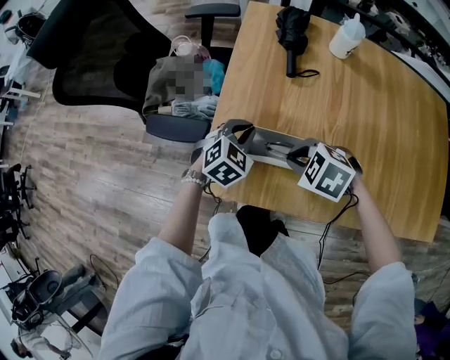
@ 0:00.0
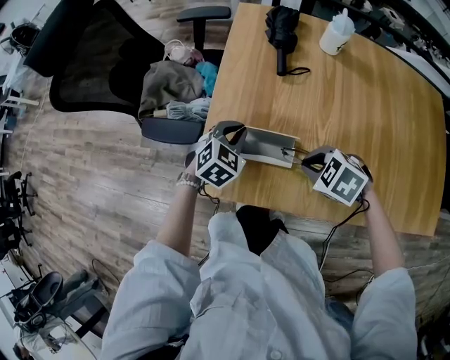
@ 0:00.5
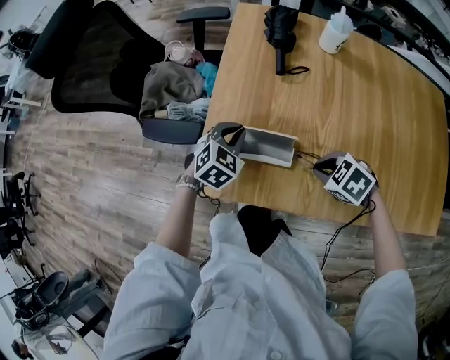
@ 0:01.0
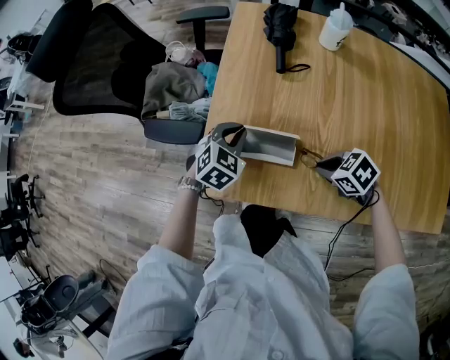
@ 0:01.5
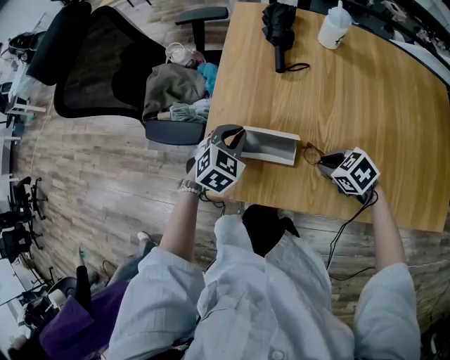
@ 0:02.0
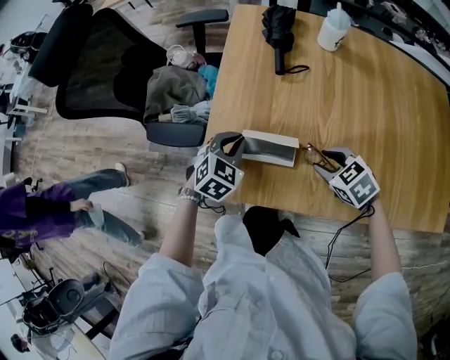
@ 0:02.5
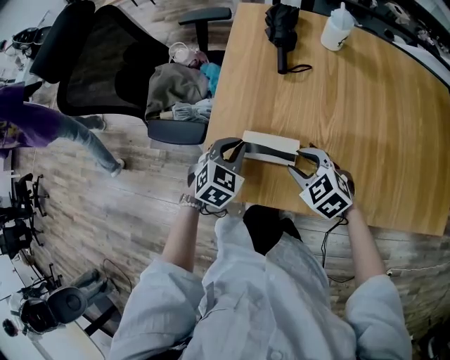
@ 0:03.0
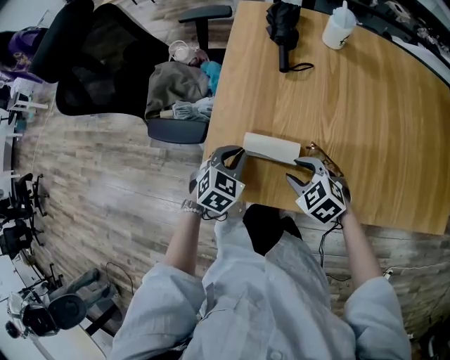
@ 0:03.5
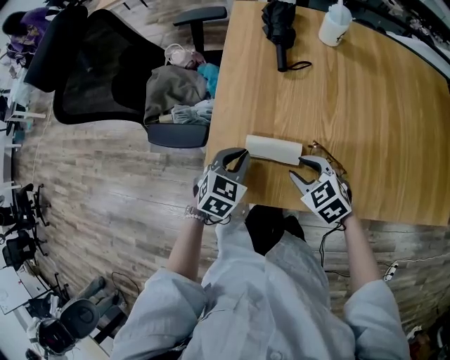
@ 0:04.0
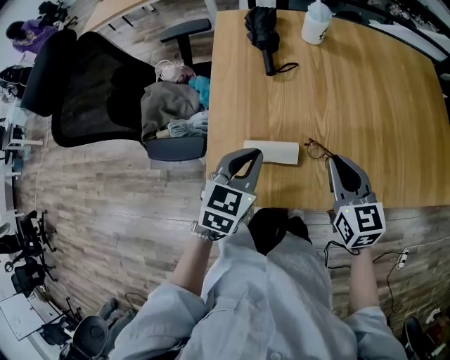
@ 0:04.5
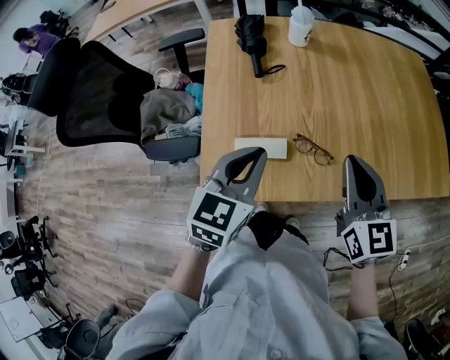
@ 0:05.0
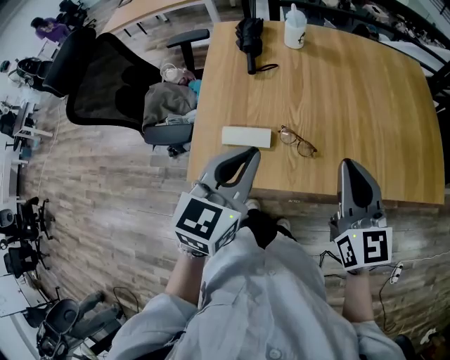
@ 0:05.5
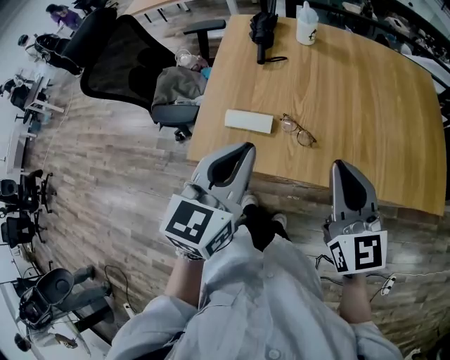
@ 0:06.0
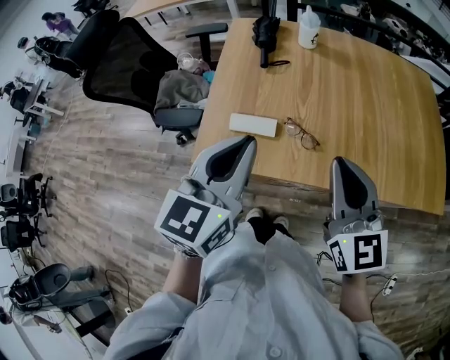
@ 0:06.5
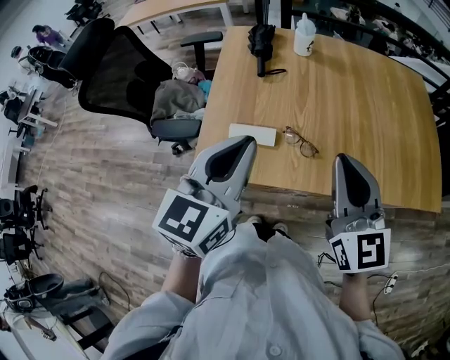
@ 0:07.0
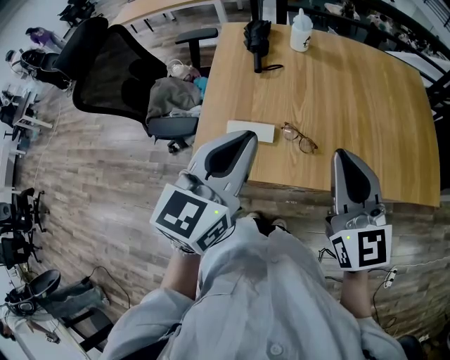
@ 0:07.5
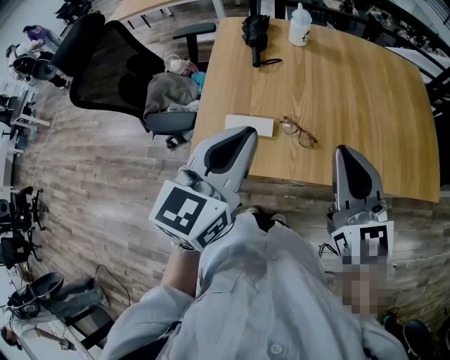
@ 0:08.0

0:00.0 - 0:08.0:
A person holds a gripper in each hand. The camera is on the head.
0:00.0 - 0:02.0: The right gripper shifts approximately 15 cm to the right, backward and downward, and swivels some 30 degrees.
0:02.0 - 0:04.0: The left gripper shifts roughly 5 cm backward. Meanwhile the right gripper shifts about 10 cm to the left, rotates some 20 degrees, and opens up.
0:04.0 - 0:06.0: The grippers both shift upward, to the right and backward by roughly 35 cm. The left gripper turns by about 30 degrees, while the right gripper points its fingers about 40 degrees further upward, and closes its fingers.
0:06.0 - 0:08.0: The right gripper moves roughly 5 cm, while the left gripper changes place by about 5 cm.

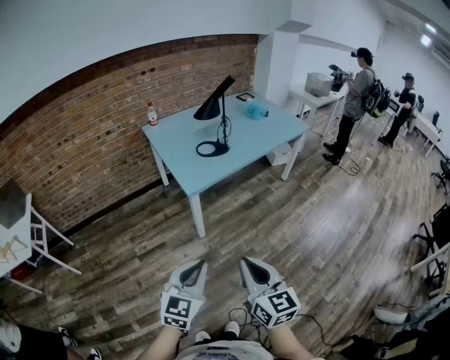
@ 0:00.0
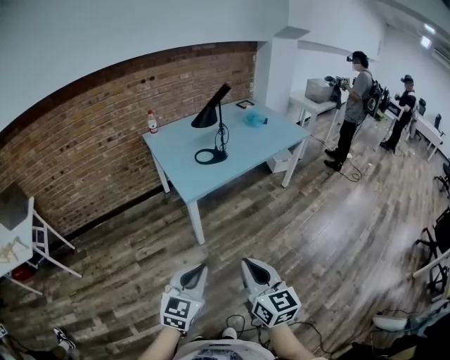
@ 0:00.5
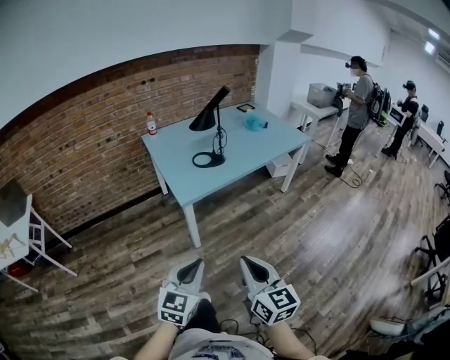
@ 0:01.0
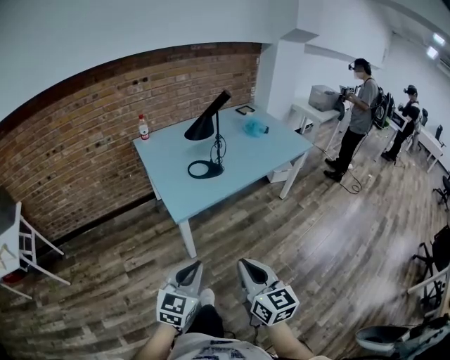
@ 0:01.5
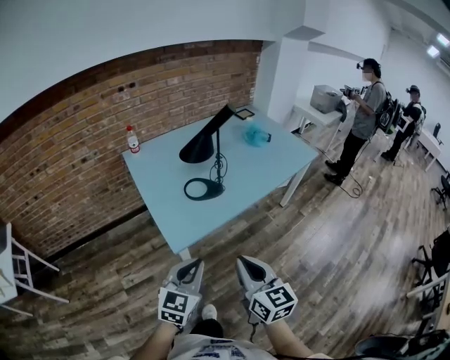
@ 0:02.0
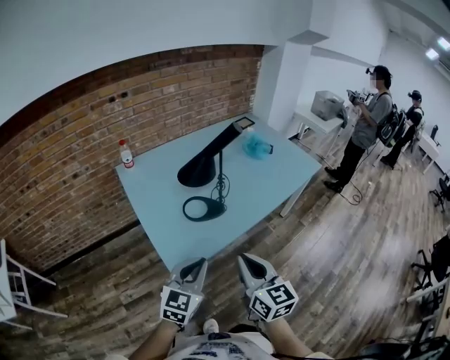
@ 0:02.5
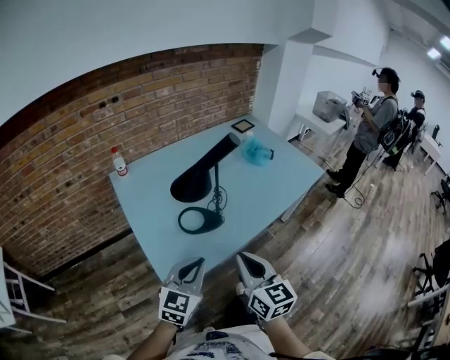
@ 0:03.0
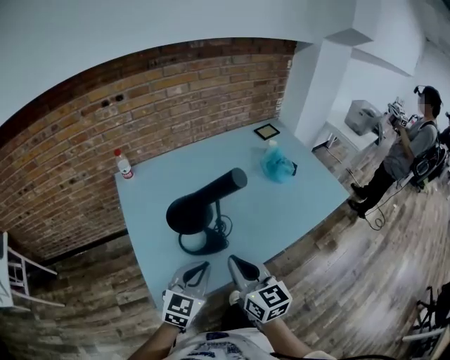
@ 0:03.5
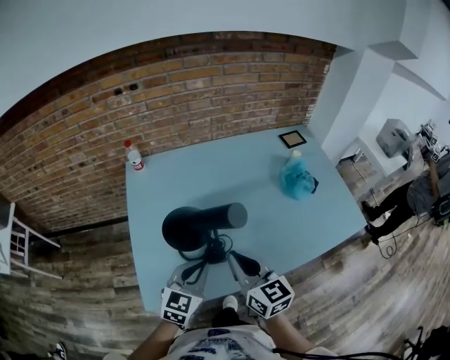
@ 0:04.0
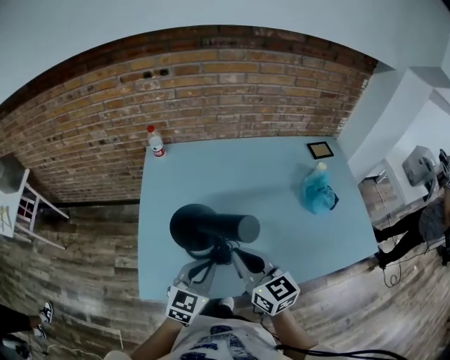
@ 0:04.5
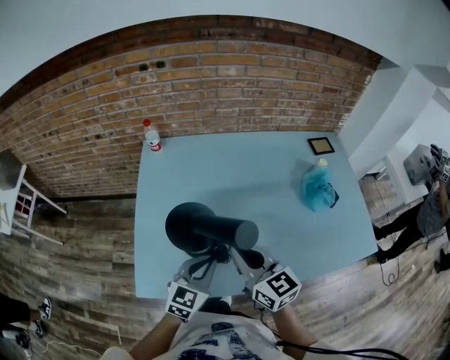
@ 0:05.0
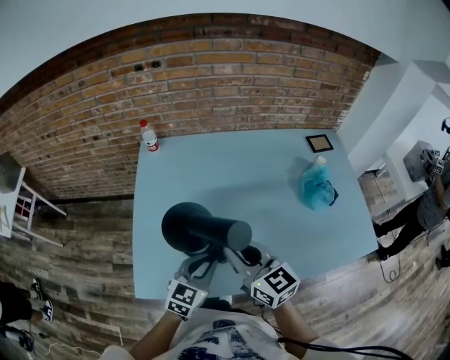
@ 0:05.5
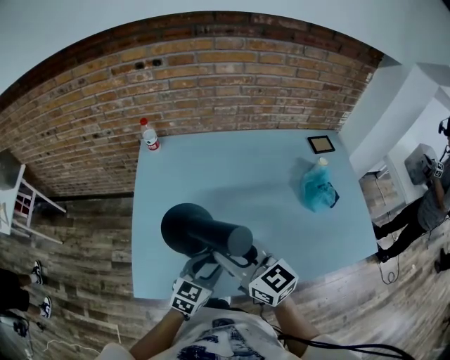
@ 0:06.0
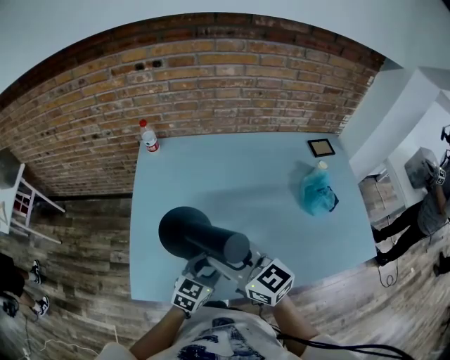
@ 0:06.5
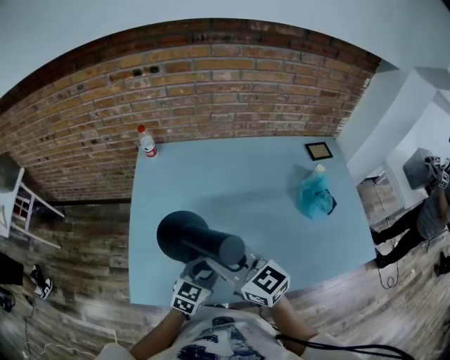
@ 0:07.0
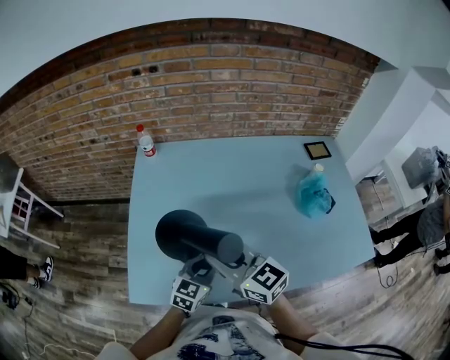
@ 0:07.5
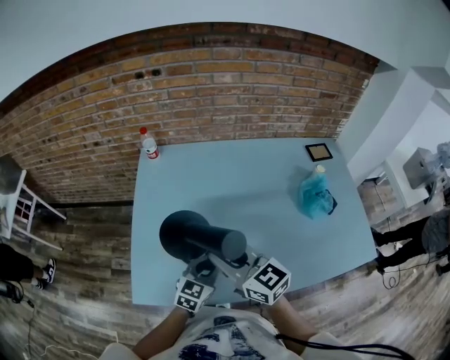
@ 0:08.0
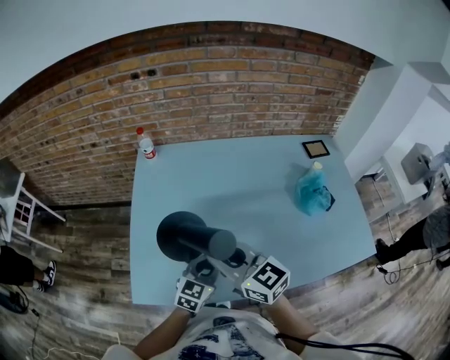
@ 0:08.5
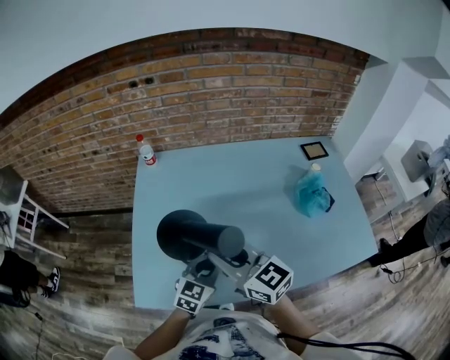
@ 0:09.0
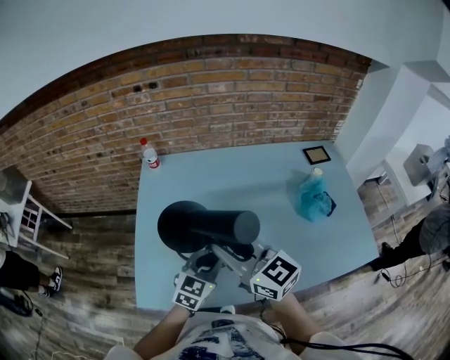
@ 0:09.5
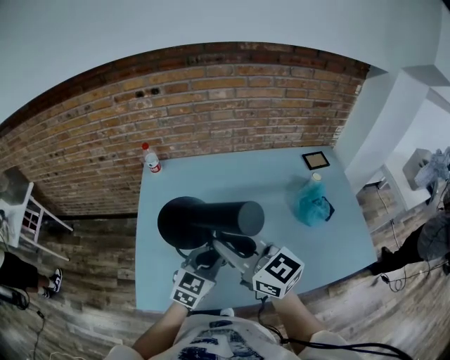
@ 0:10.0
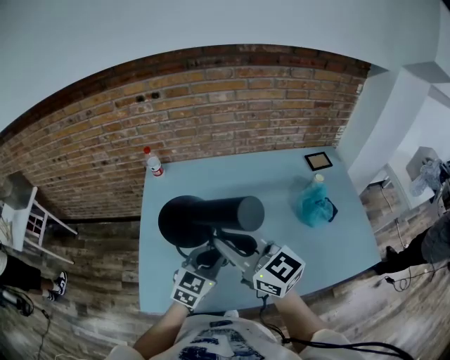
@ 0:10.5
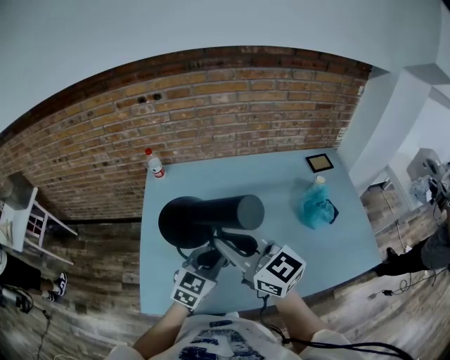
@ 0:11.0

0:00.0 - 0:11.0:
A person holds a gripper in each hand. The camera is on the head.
0:00.0 - 0:02.0: The two grippers go approximately 35 cm forward.
0:02.0 - 0:03.5: Both grippers move forward, roughly 35 cm.
0:03.5 - 0:05.5: The left gripper shifts some 15 cm forward, downward and to the right, while the right gripper goes approximately 15 cm forward, and swivels approximately 30 degrees.
0:05.5 - 0:07.5: The left gripper ends up approximately 5 cm from where it was; the right gripper opens, then closes once more.
0:07.5 - 0:09.0: The grippers move only a little.
0:09.0 - 0:11.0: Both grippers travel together upward, some 10 cm.

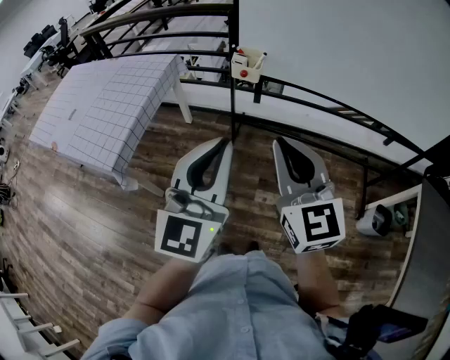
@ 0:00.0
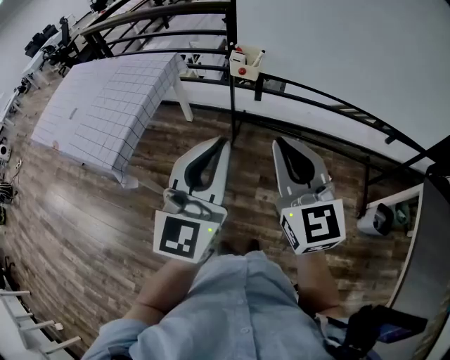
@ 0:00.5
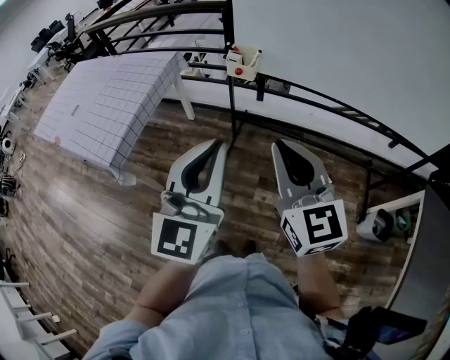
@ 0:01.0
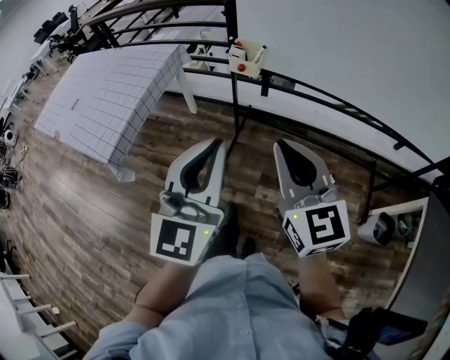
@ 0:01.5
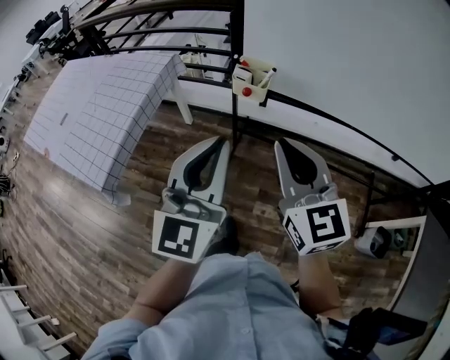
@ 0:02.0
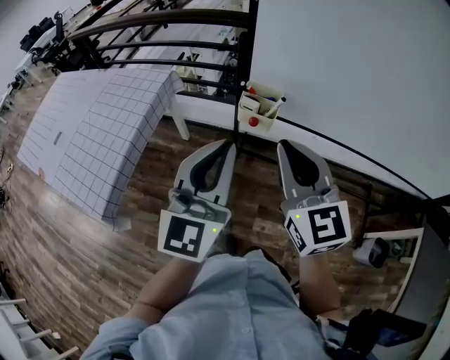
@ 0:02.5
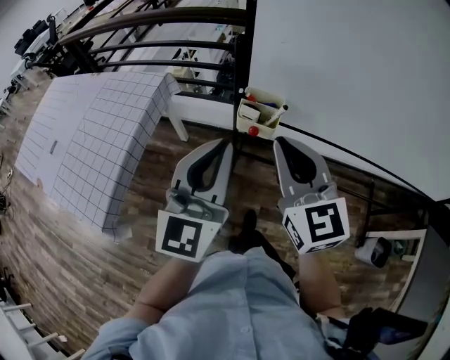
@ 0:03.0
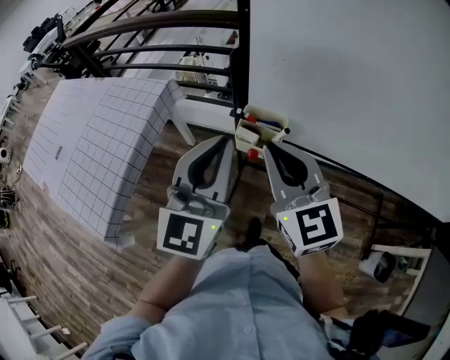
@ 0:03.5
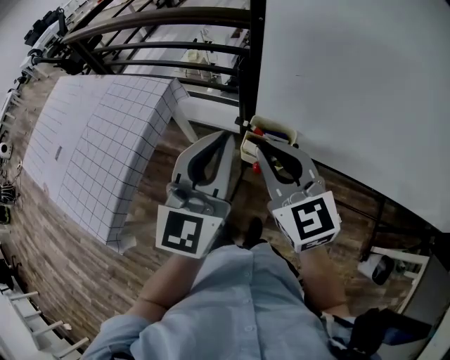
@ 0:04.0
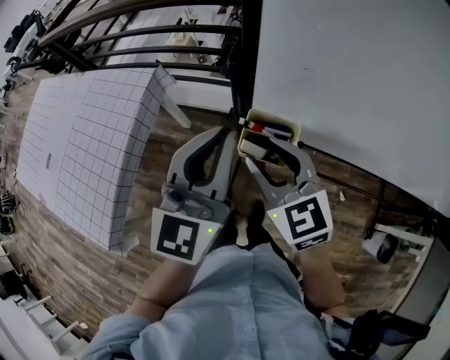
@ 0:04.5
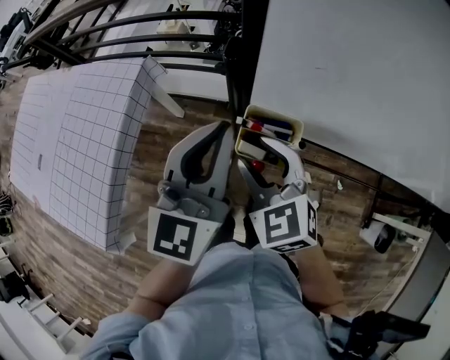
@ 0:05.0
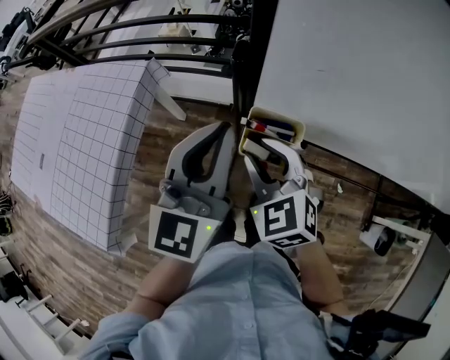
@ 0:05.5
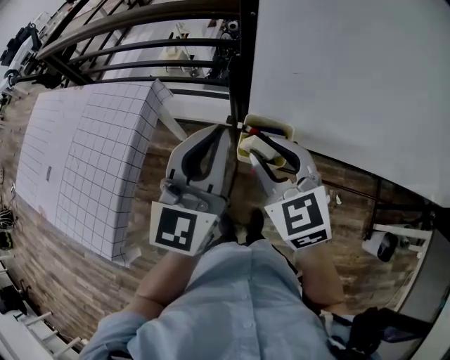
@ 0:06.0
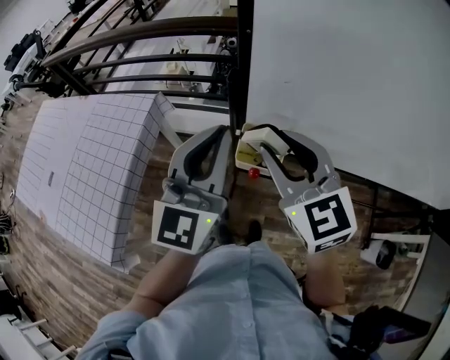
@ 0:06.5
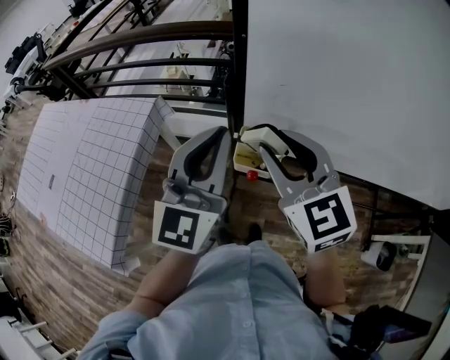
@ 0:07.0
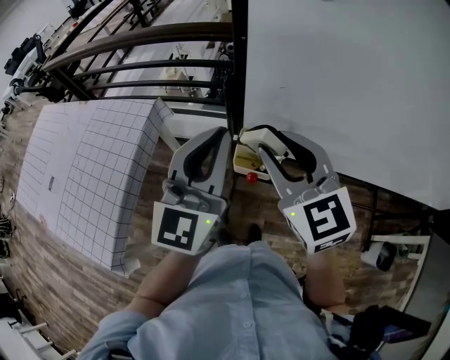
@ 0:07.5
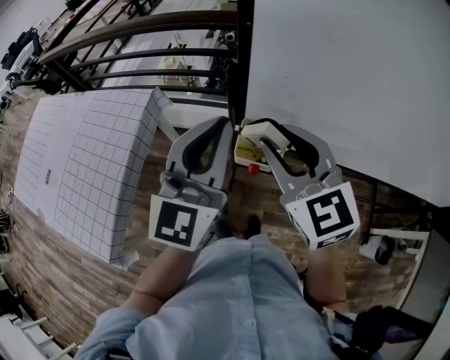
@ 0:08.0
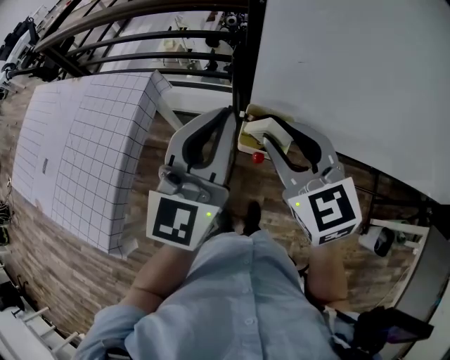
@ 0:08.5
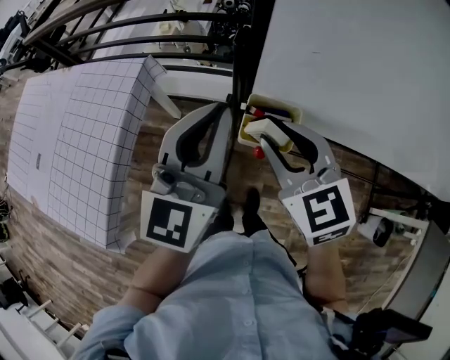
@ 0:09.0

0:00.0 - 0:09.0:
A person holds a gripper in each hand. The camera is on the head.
0:00.0 - 0:02.0: Both grippers move forward, about 15 cm.
0:02.0 - 0:04.5: The grippers both shift forward by roughly 30 cm. The right gripper opens.
0:04.5 - 0:07.0: The left gripper moves some 5 cm, while the right gripper heads upward, covering roughly 10 cm.
0:07.0 - 0:09.0: The right gripper is displaced downward by about 10 cm.
